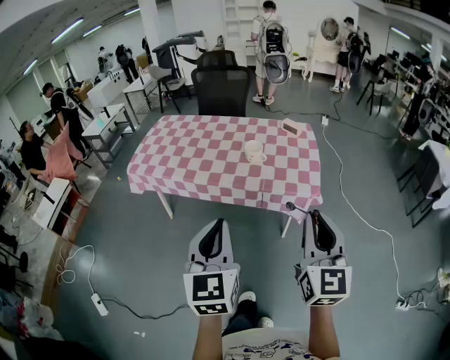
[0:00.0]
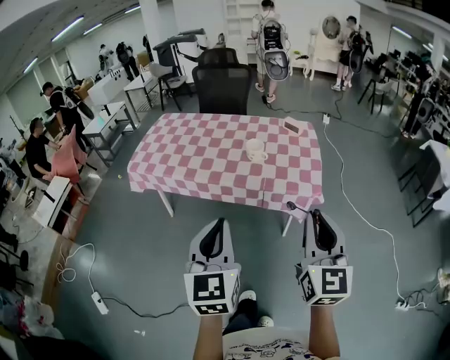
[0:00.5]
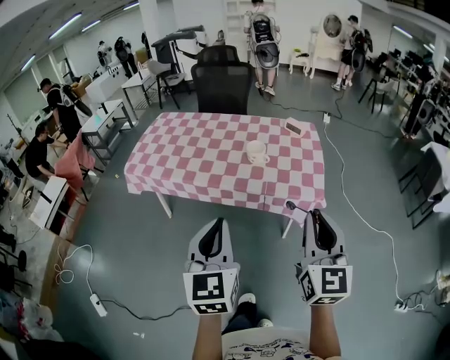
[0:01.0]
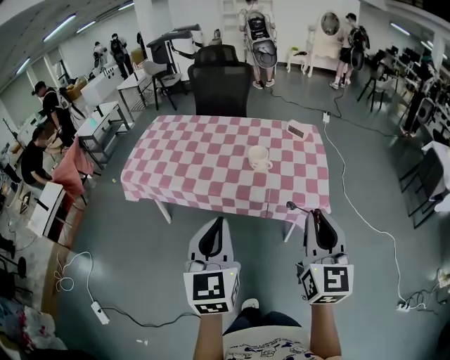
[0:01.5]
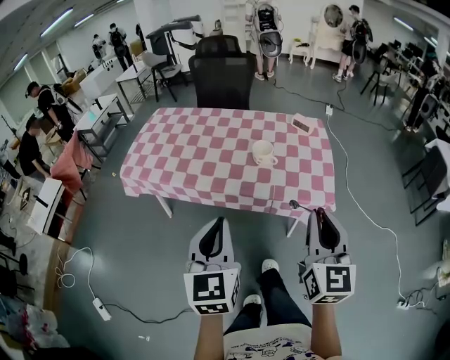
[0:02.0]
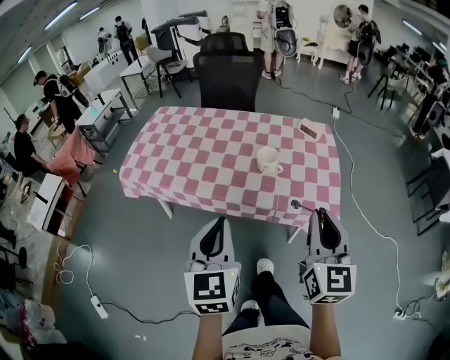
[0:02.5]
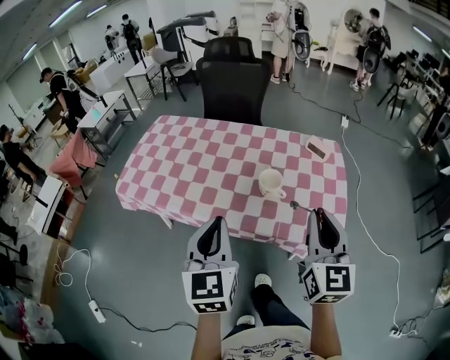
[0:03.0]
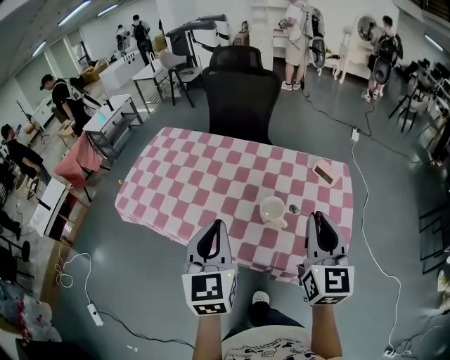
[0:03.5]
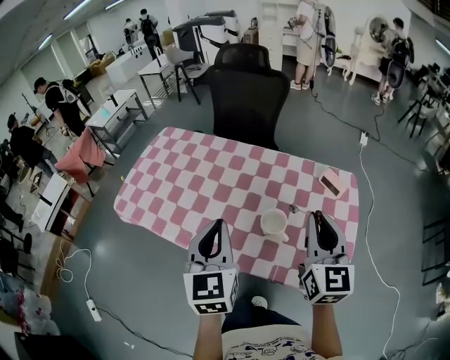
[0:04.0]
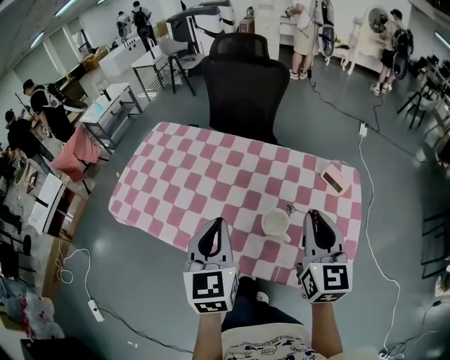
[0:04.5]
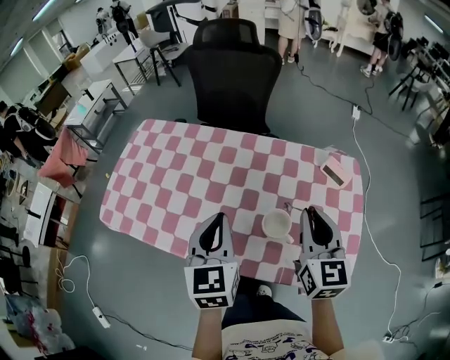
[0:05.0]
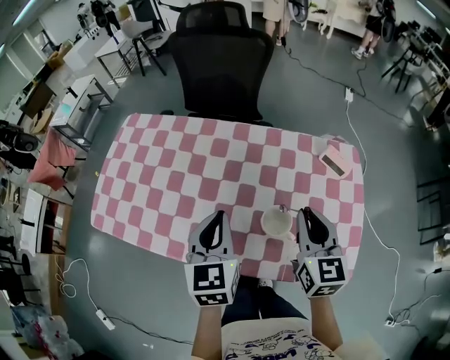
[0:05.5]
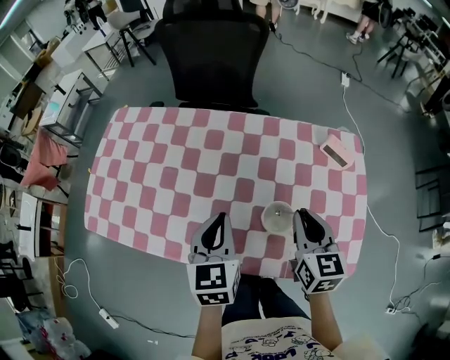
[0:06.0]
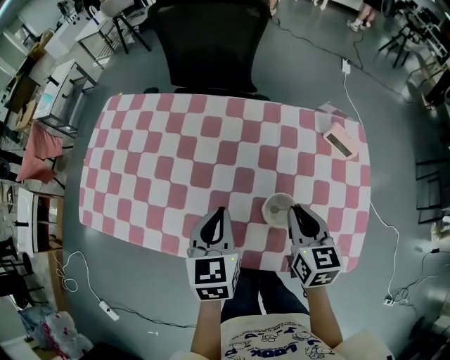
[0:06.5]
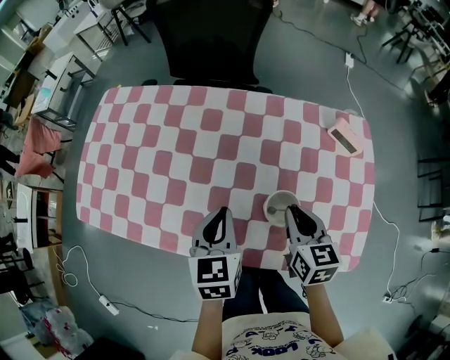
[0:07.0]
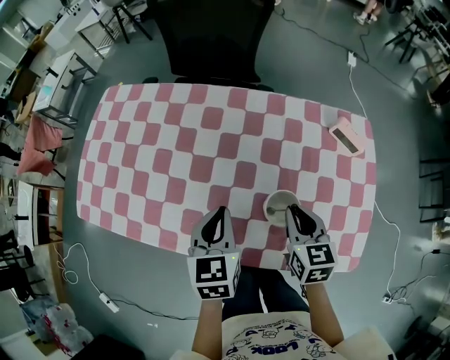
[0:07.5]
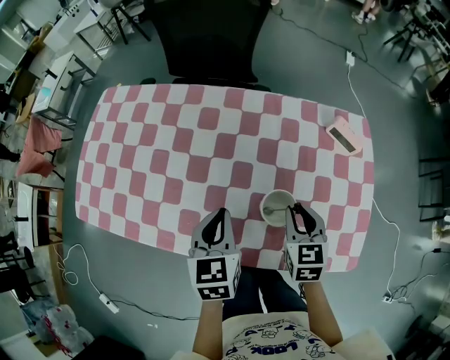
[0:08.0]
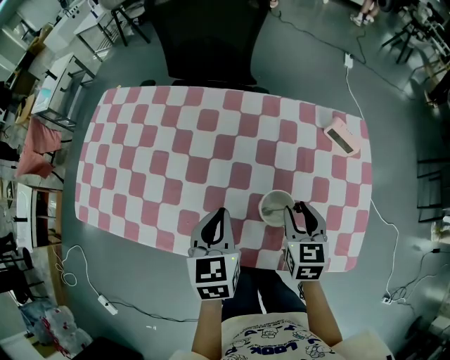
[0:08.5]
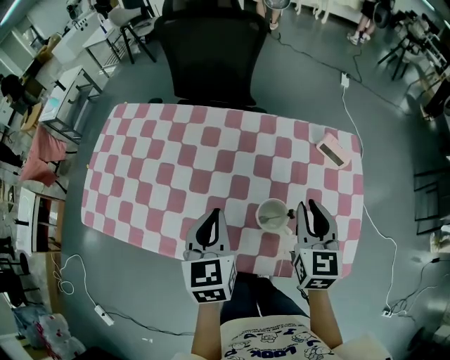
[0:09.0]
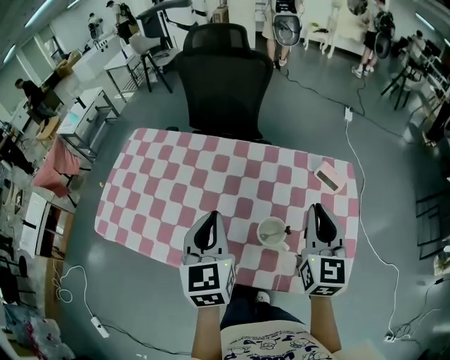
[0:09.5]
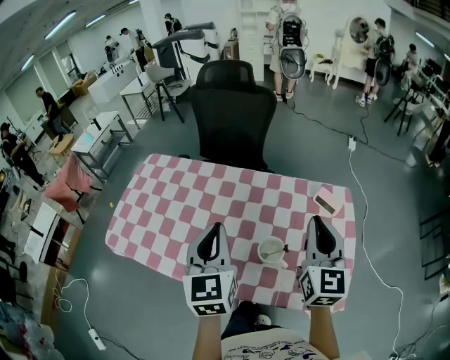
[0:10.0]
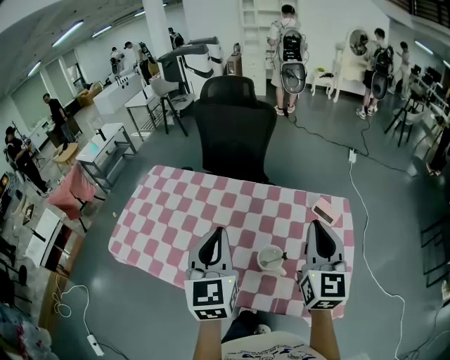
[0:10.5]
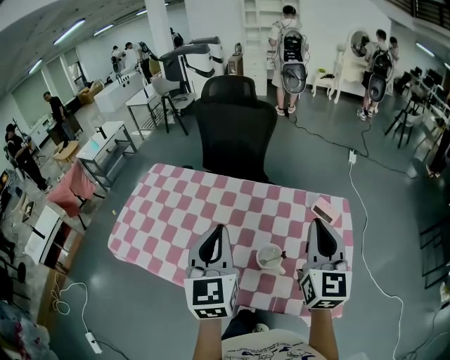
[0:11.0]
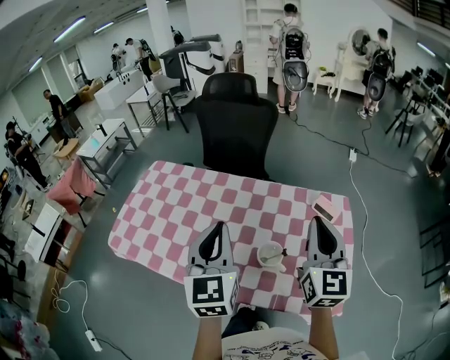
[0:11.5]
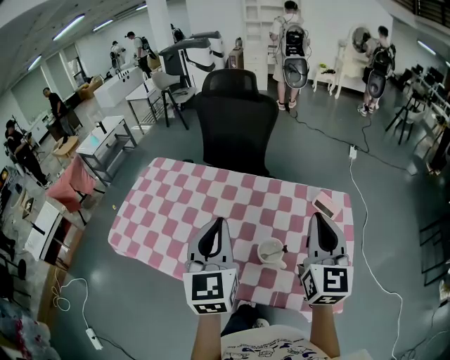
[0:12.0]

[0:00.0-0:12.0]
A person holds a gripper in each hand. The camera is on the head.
0:00.0 to 0:02.0: Both grippers travel together forward, roughly 15 cm.
0:02.0 to 0:04.0: Both grippers move forward, roughly 40 cm.
0:04.0 to 0:06.0: The right gripper moves downward and forward, approximately 20 cm, and changes its angle by about 20 degrees, while the left gripper travels forward and downward by some 25 cm, and rotates approximately 20 degrees.
0:06.0 to 0:08.0: The left gripper shifts some 5 cm downward; the right gripper travels downward by approximately 10 cm.
0:08.0 to 0:10.0: The grippers both shift upward by roughly 25 cm. The left gripper swivels approximately 30 degrees, while the right gripper tips its fingers upward by some 40 degrees.
0:10.0 to 0:12.0: The grippers move only a little.

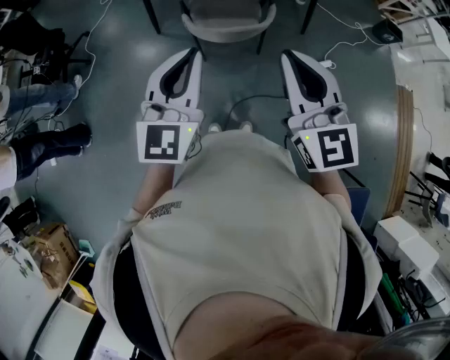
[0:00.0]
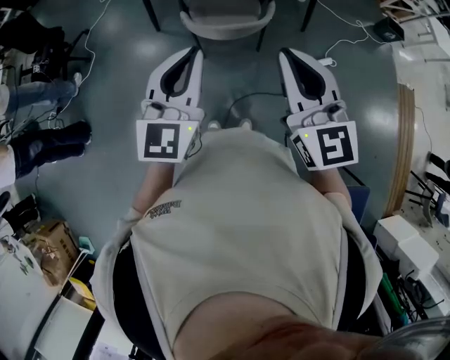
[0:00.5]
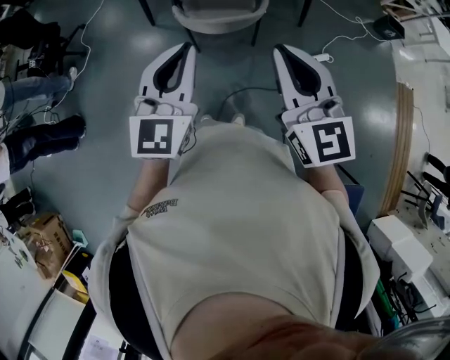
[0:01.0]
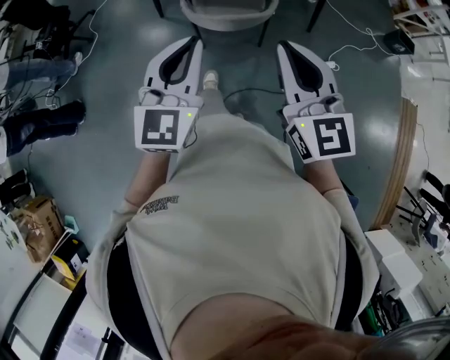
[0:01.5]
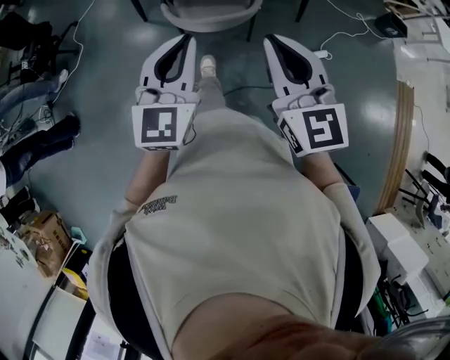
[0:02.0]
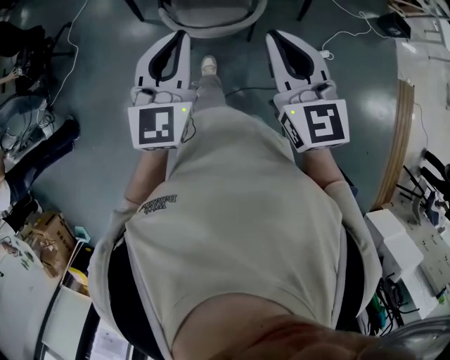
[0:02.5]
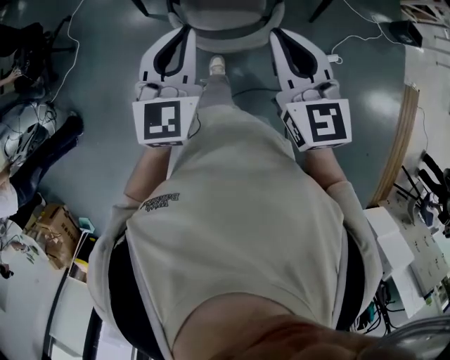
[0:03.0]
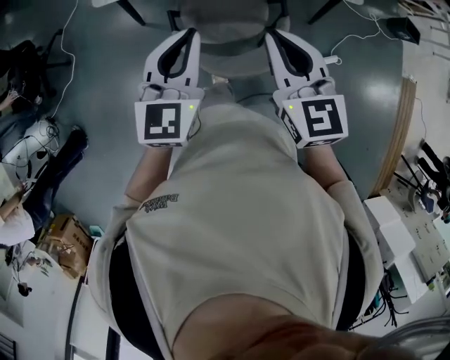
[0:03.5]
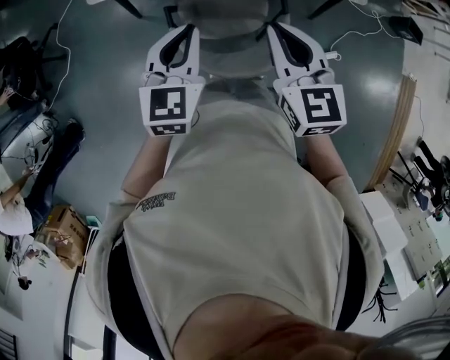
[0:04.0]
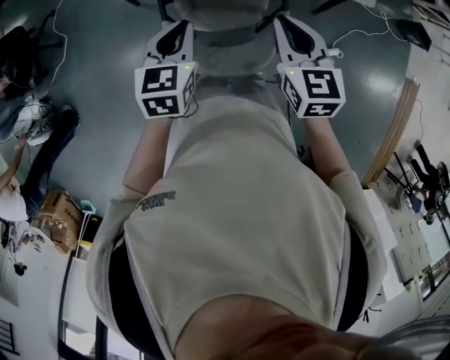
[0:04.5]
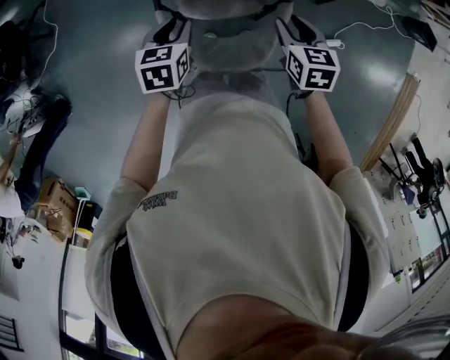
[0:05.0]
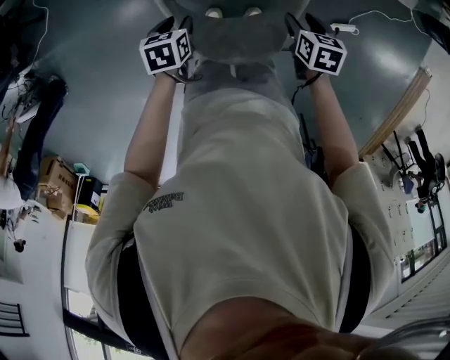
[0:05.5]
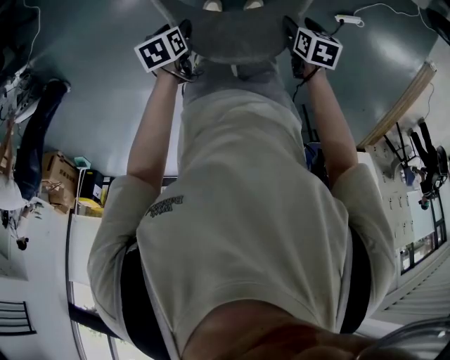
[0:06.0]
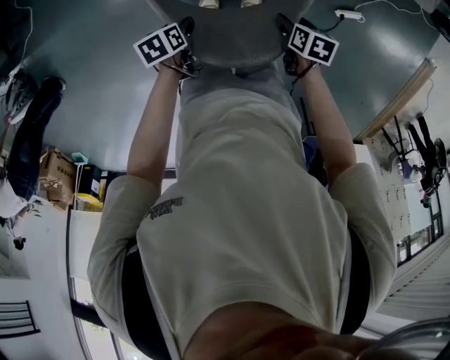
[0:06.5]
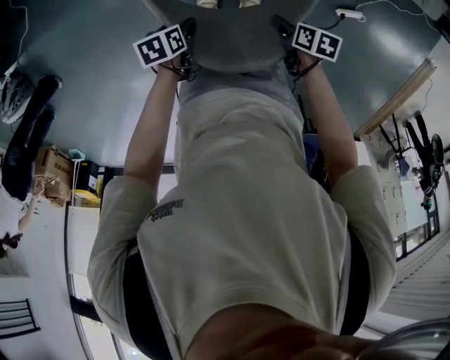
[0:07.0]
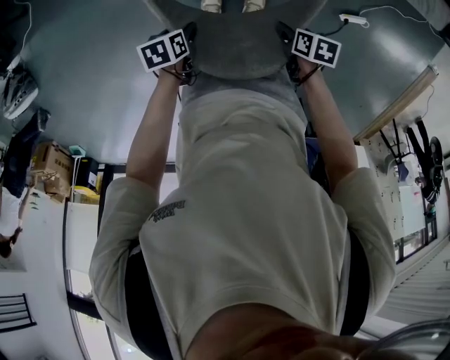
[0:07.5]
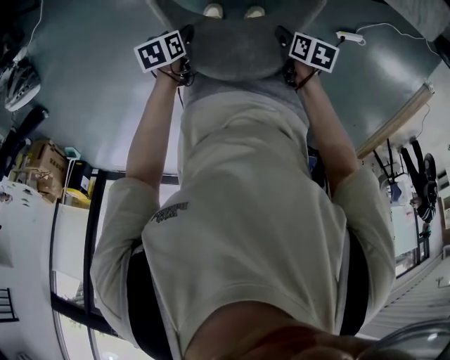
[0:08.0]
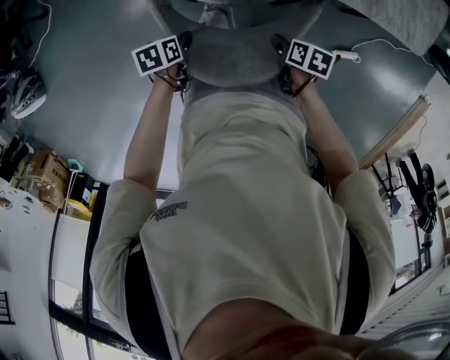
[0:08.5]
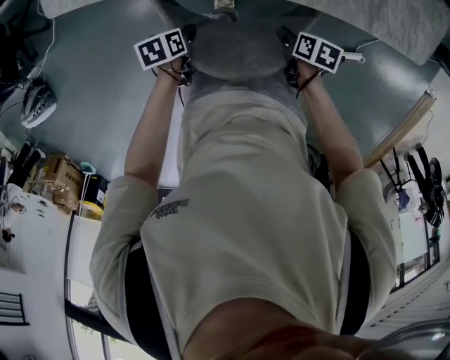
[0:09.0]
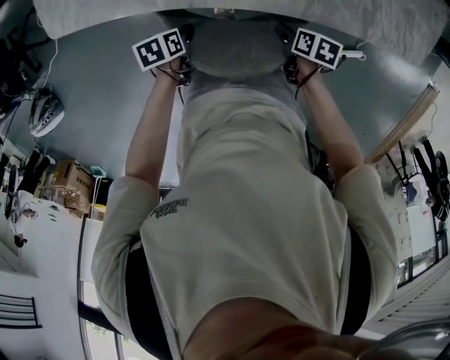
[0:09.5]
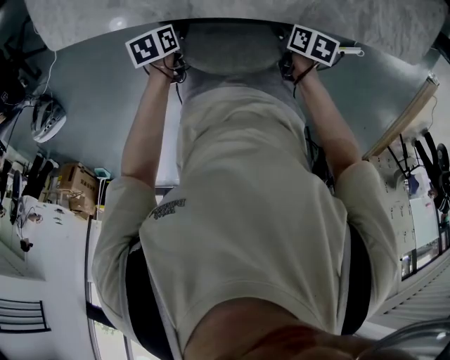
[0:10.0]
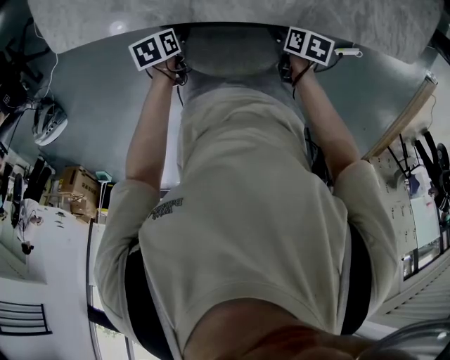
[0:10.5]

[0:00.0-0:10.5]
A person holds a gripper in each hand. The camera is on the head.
0:00.0 to 0:02.0: The two grippers go about 10 cm to the right, downward and forward.
0:02.0 to 0:04.0: Both grippers travel together forward, roughly 35 cm.
0:04.0 to 0:06.5: Both grippers move downward, approximately 40 cm. The left gripper points its fingers some 40 degrees further downward, and opens, while the right gripper angles its fingers downward, by about 50 degrees, and opens its fingers.
0:06.5 to 0:08.5: The left gripper moves some 10 cm. Meanwhile the right gripper moves approximately 10 cm.
0:08.5 to 0:10.5: Both grippers move forward, about 20 cm.

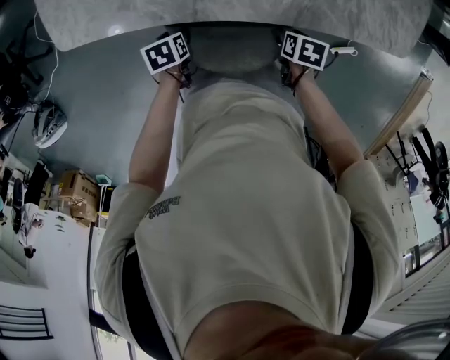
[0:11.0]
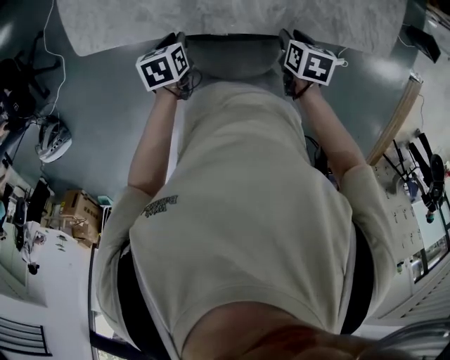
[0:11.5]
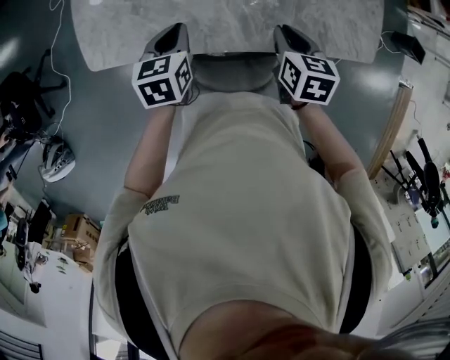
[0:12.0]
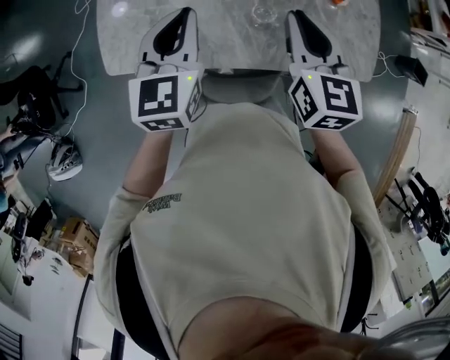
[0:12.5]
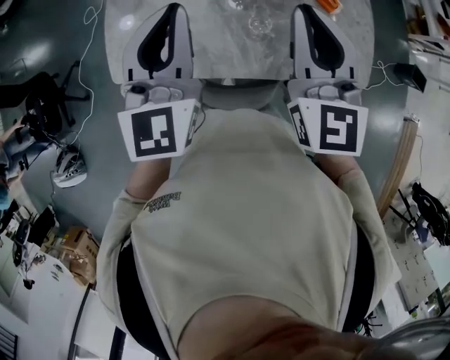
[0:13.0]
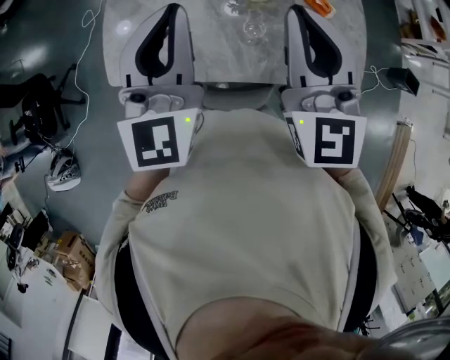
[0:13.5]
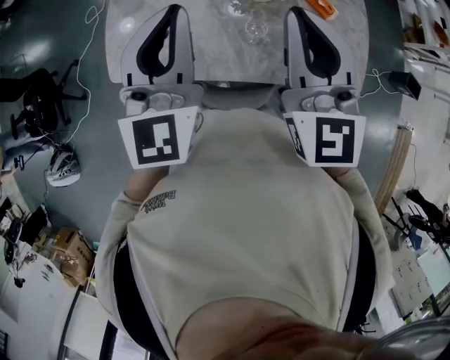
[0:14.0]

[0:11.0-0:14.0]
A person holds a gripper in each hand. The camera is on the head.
0:11.0 to 0:12.5: Both grippers move upward, roughly 40 cm. The right gripper tilts its fingers about 60 degrees upward, and closes up. Meanwhile the left gripper tips its fingers upward by roughly 60 degrees, and closes.
0:12.5 to 0:14.0: Both grippers travel together upward, about 15 cm. The right gripper rotates about 30 degrees, while the left gripper rotates some 20 degrees.

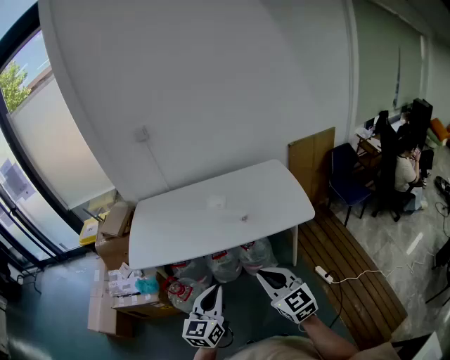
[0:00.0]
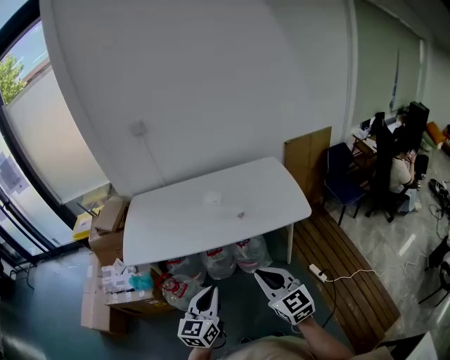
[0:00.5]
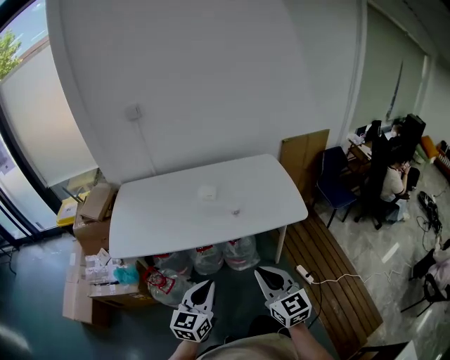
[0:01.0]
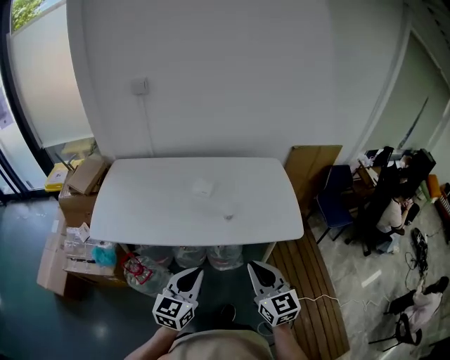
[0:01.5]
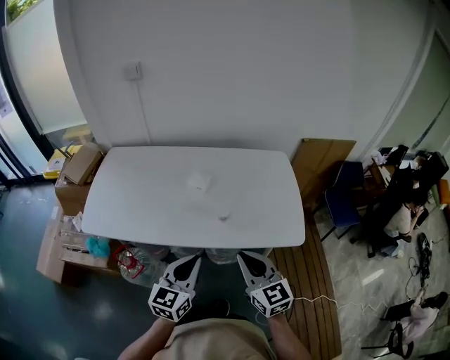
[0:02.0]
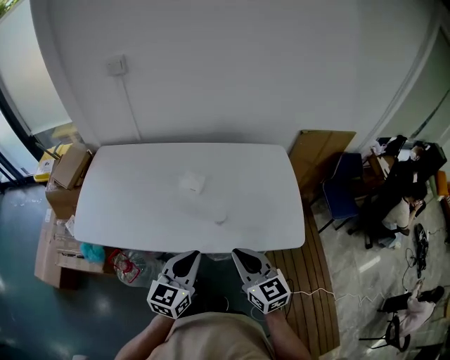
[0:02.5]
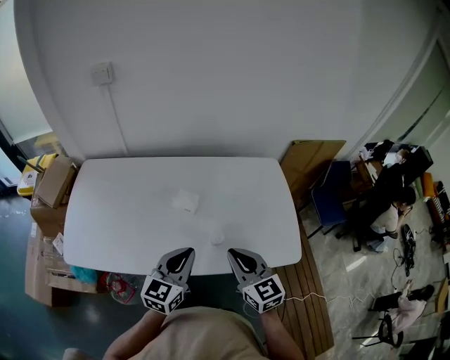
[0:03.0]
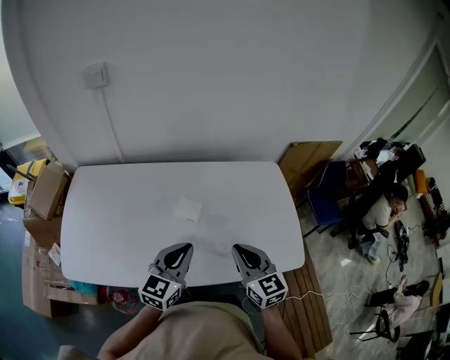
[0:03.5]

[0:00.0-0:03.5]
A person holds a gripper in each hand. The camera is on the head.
0:00.0 to 0:02.0: Both grippers move forward, approximately 20 cm.
0:02.0 to 0:03.5: Both grippers move forward, roughly 20 cm.
